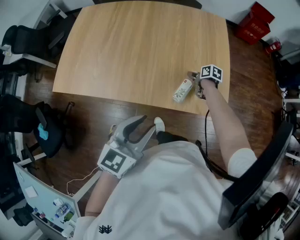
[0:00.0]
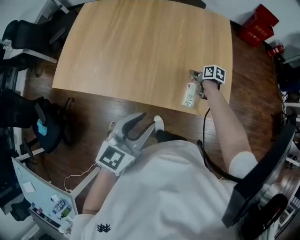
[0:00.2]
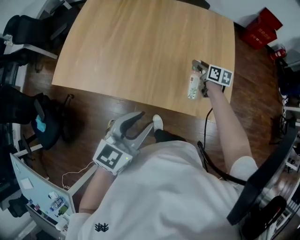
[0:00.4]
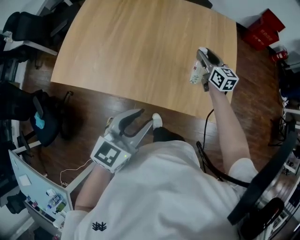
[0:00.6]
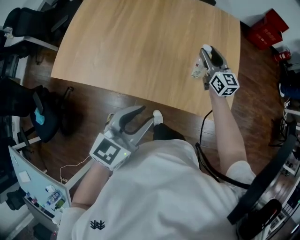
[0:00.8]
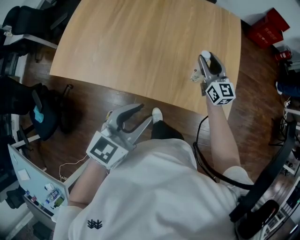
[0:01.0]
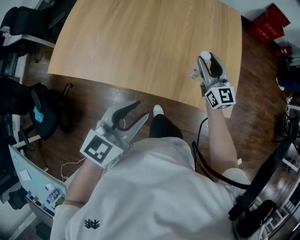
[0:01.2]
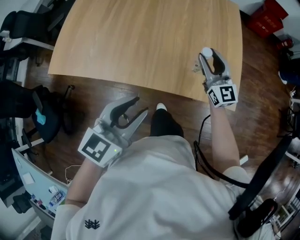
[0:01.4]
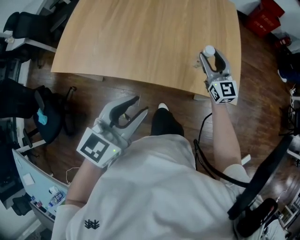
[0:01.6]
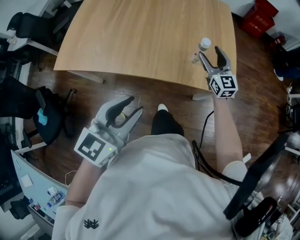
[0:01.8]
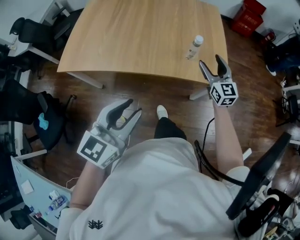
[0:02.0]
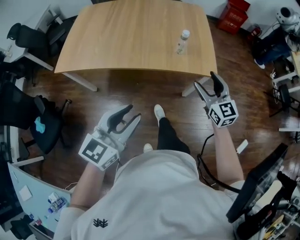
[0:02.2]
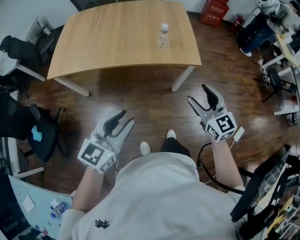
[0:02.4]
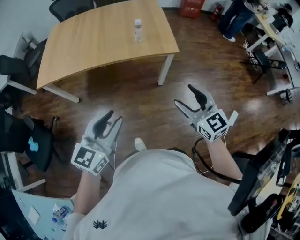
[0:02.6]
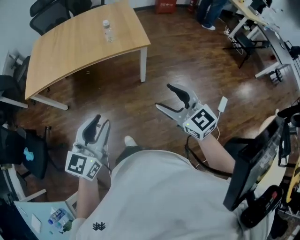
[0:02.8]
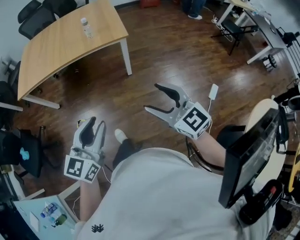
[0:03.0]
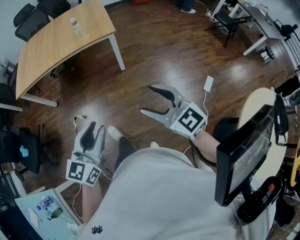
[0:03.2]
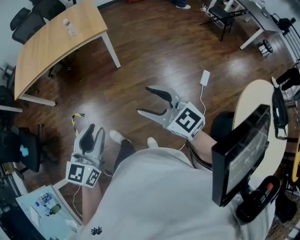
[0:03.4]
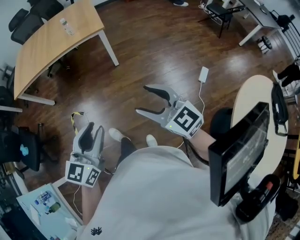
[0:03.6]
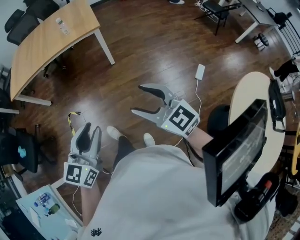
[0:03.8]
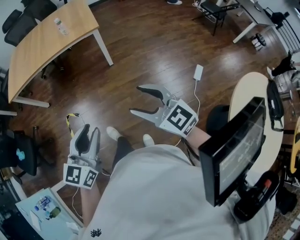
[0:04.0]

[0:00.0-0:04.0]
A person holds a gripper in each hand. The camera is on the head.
0:00.0 to 0:01.4: The right gripper travels upward by approximately 20 cm, and tilts its fingers some 50 degrees upward.
0:01.4 to 0:02.6: The left gripper shifts approximately 25 cm backward; the right gripper goes approximately 40 cm backward, and opens its fingers.
0:02.6 to 0:04.0: The right gripper heads backward, covering roughly 25 cm. The left gripper shifts some 30 cm backward and to the right.

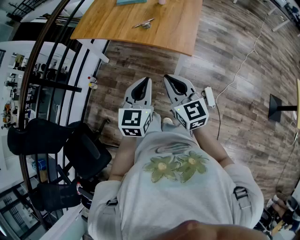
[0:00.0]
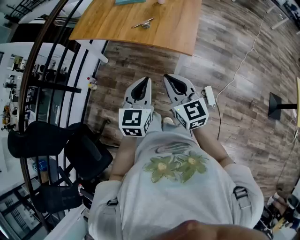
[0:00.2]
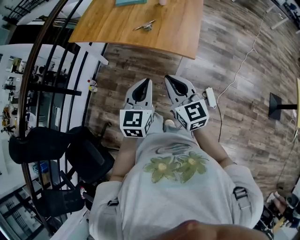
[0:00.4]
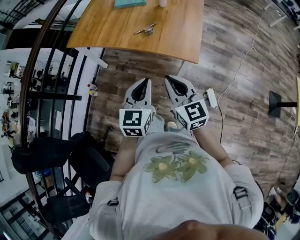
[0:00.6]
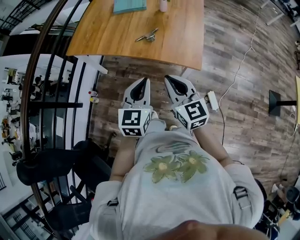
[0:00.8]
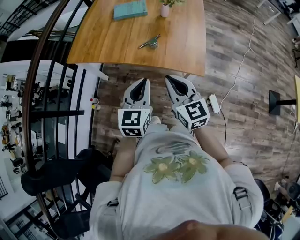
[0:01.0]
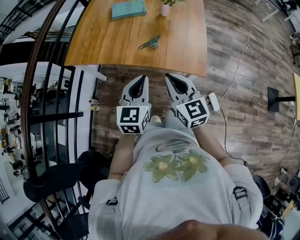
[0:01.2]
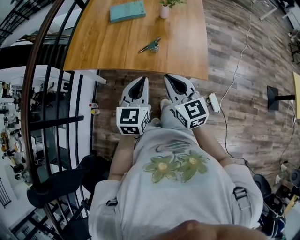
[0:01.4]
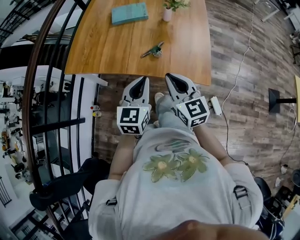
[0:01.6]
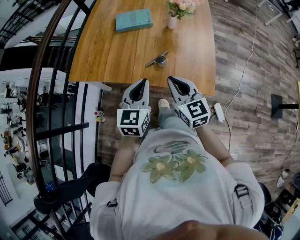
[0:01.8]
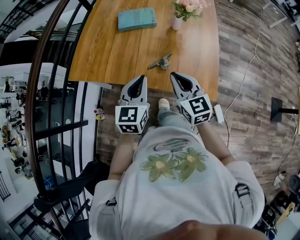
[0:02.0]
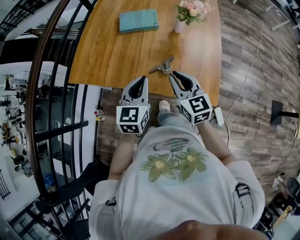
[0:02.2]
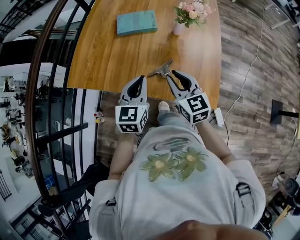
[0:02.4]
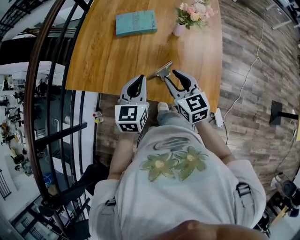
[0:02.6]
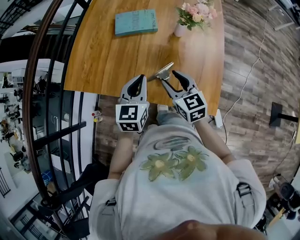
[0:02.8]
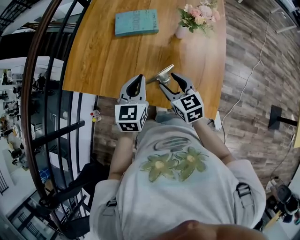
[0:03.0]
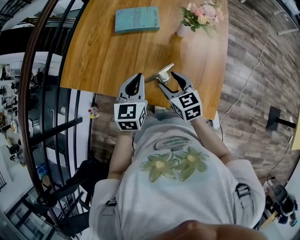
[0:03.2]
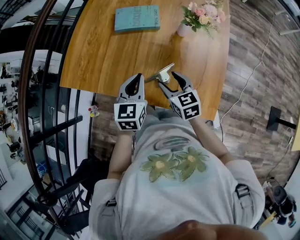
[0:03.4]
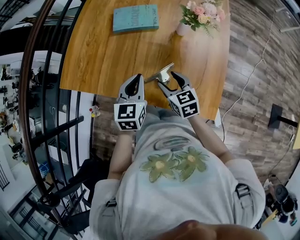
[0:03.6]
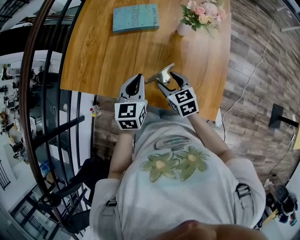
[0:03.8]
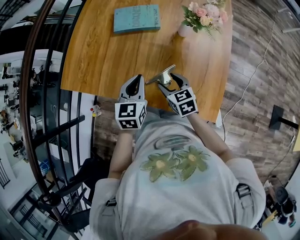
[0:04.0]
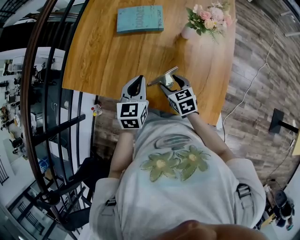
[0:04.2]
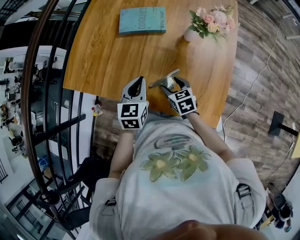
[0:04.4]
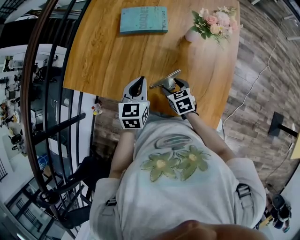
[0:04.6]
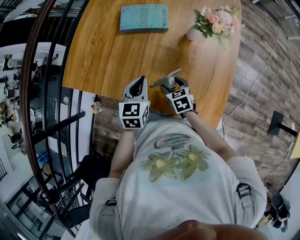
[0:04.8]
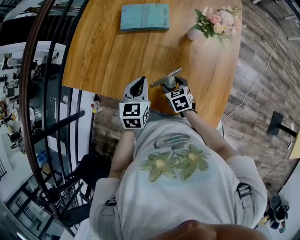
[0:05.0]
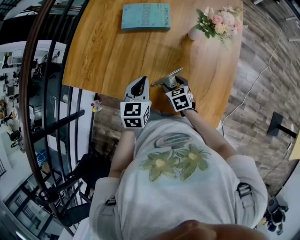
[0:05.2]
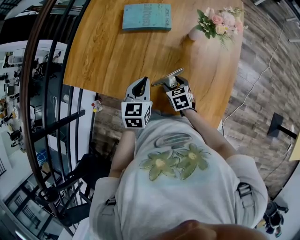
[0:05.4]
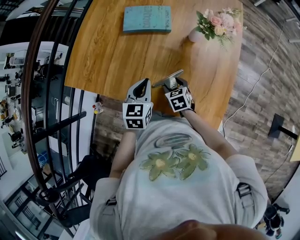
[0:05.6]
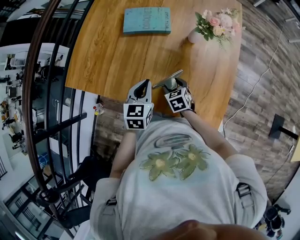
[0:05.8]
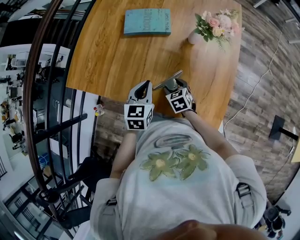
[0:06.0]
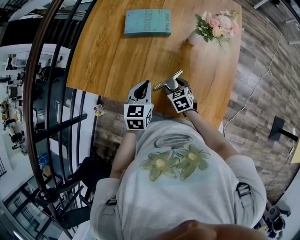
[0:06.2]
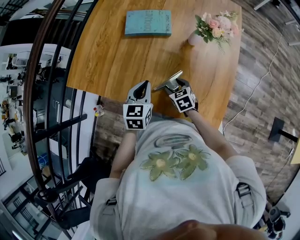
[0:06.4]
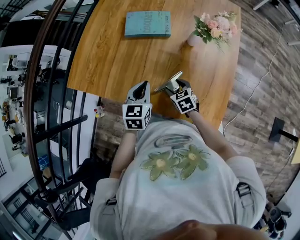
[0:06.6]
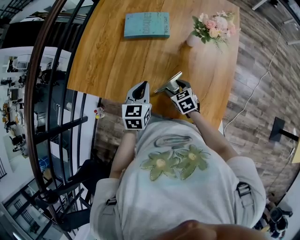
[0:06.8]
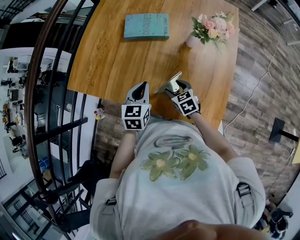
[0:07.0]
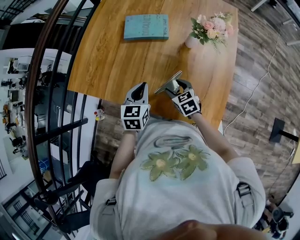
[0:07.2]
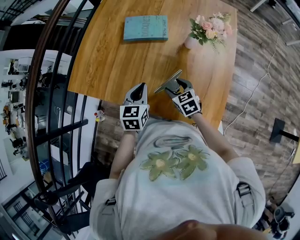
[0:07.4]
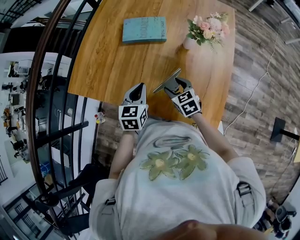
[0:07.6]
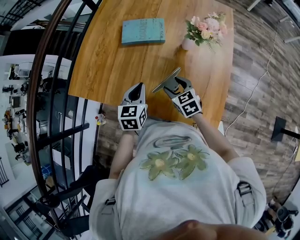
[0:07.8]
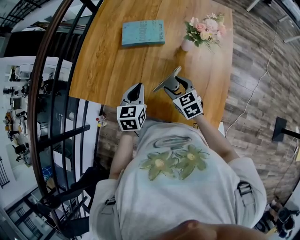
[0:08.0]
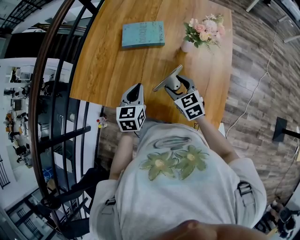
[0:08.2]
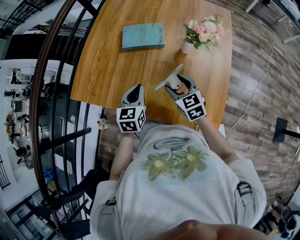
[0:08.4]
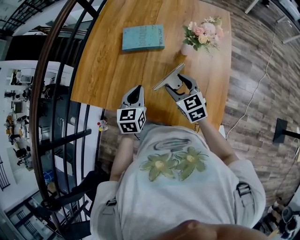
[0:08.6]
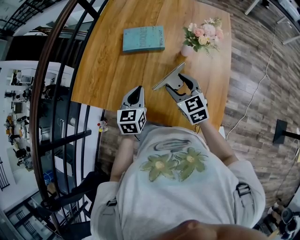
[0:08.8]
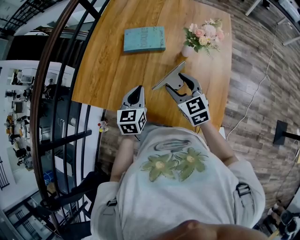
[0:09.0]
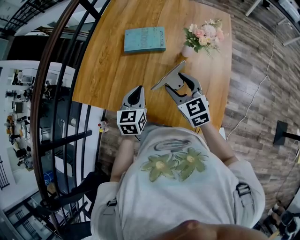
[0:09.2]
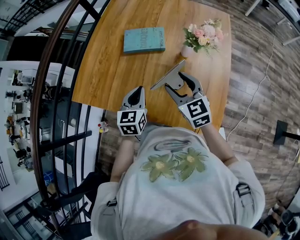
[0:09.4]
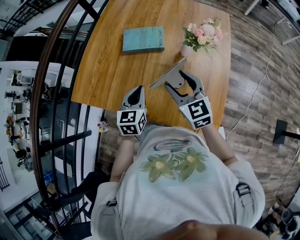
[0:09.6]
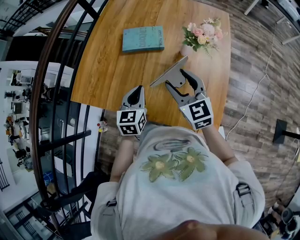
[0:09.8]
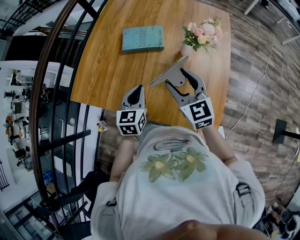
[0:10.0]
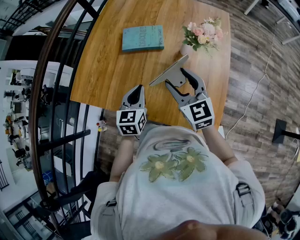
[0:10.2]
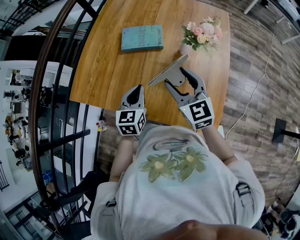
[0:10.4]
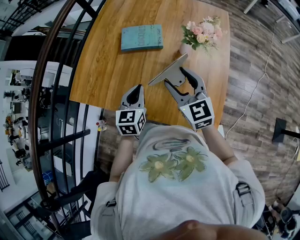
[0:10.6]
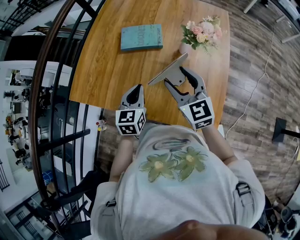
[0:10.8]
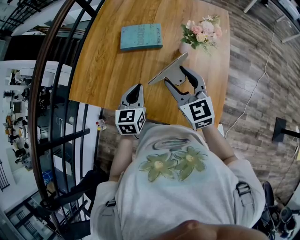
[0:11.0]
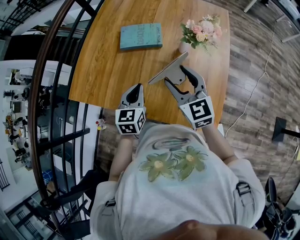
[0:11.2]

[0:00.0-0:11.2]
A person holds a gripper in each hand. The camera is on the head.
0:00.0 to 0:01.6: The two grippers go approximately 25 cm forward.
0:01.6 to 0:03.2: The left gripper goes about 20 cm forward. The right gripper heads forward and downward, covering some 20 cm, turns by roughly 20 degrees, and opens up.
0:03.2 to 0:04.8: The right gripper travels downward by approximately 15 cm, and changes its angle by roughly 20 degrees. Meanwhile the left gripper moves downward, roughly 5 cm.
0:04.8 to 0:06.4: The grippers make only small movements.
0:06.4 to 0:08.0: The right gripper goes roughly 10 cm upward.
0:08.0 to 0:09.6: The right gripper shifts about 15 cm upward, and swivels roughly 20 degrees.
0:09.6 to 0:11.2: The grippers stay close to where they were, moving slightly.

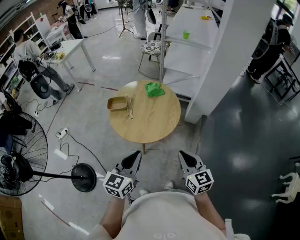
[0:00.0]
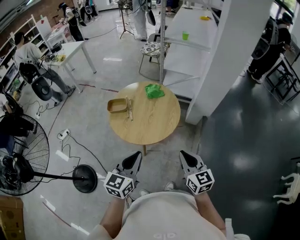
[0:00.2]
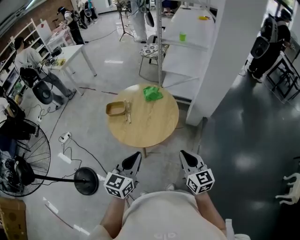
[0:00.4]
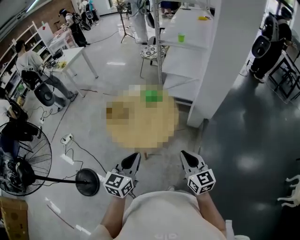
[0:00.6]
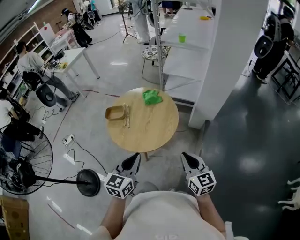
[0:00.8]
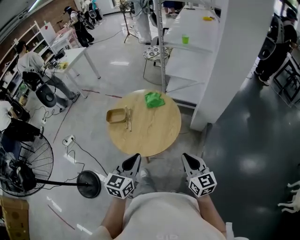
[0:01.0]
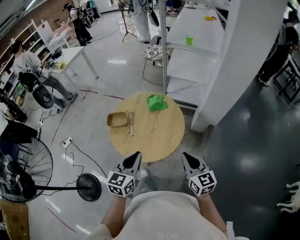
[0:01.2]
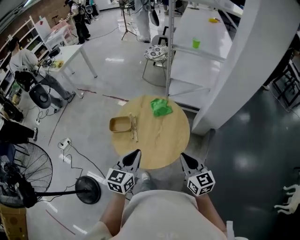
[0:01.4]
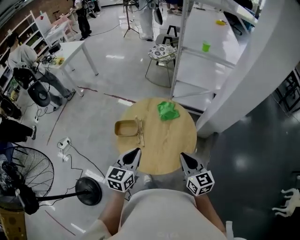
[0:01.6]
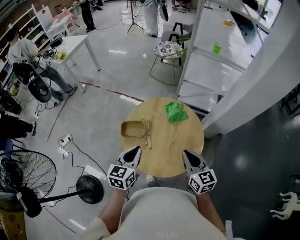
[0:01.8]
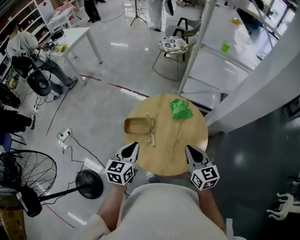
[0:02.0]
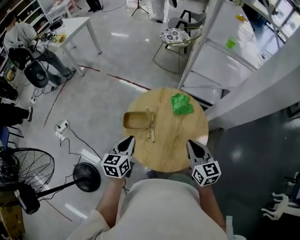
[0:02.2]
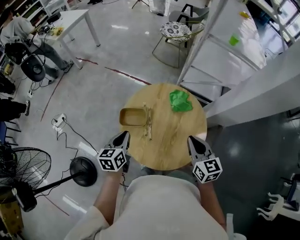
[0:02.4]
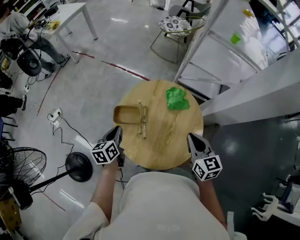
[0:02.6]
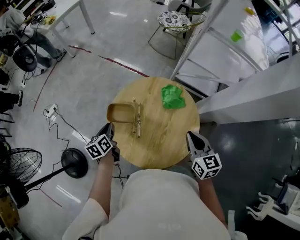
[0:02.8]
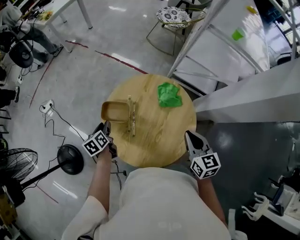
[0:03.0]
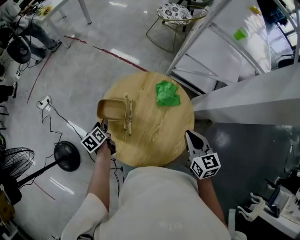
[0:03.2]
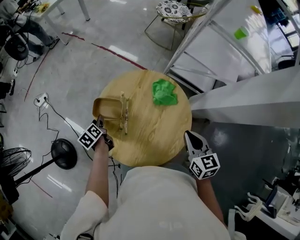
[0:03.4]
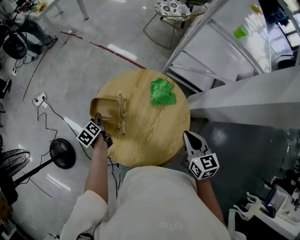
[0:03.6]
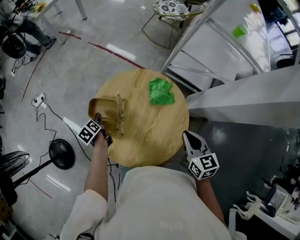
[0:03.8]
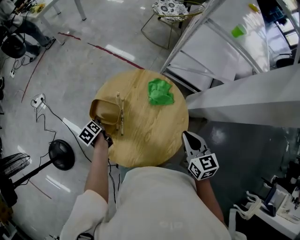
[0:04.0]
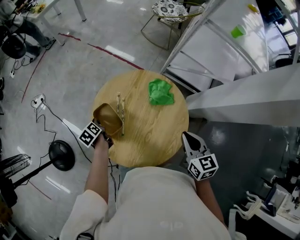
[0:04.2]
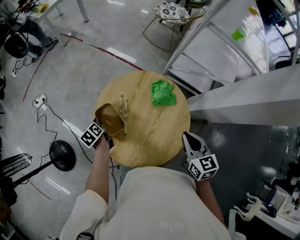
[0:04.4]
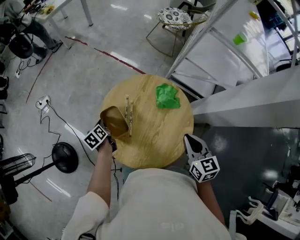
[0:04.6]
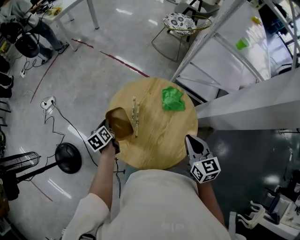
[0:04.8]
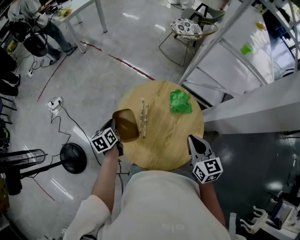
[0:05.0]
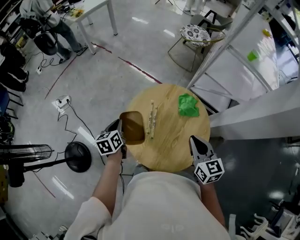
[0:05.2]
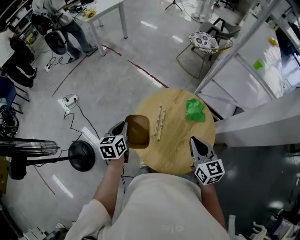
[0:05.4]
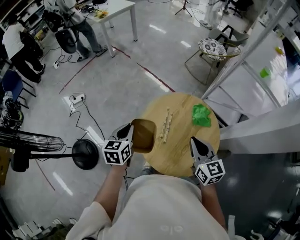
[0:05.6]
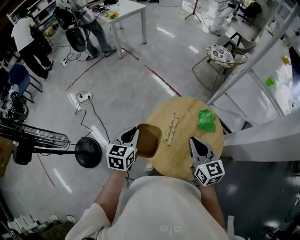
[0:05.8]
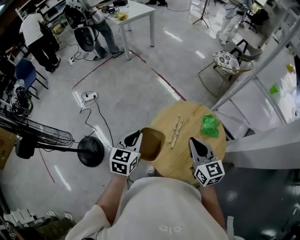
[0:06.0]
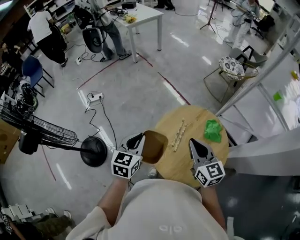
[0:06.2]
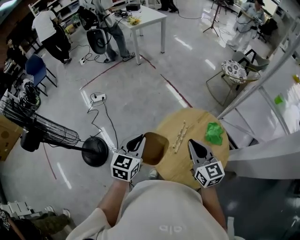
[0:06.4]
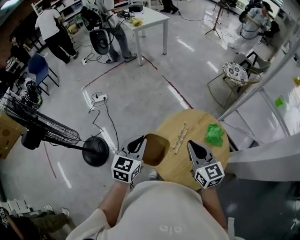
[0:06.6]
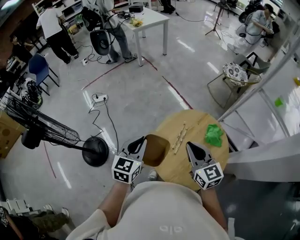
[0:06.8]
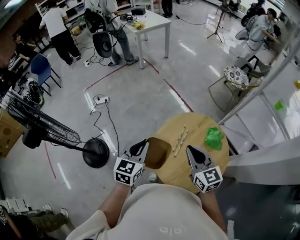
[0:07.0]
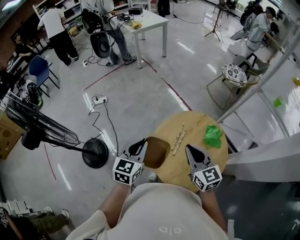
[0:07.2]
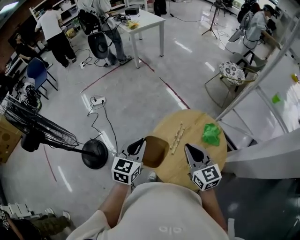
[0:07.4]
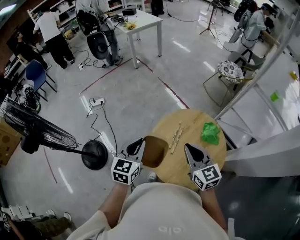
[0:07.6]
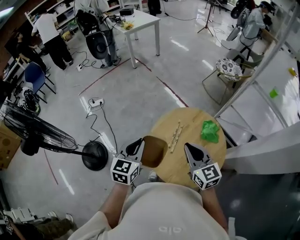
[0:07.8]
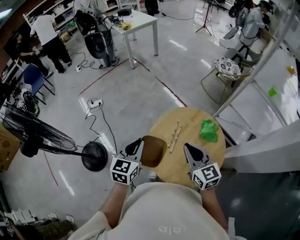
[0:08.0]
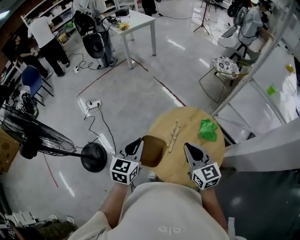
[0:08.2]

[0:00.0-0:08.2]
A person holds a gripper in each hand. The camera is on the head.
0:00.0 to 0:01.6: Both grippers move forward, some 25 cm.
0:01.6 to 0:03.2: The left gripper heads downward, forward and to the left, covering approximately 35 cm, rotates about 60 degrees, and opens up; the right gripper is displaced forward and downward by about 20 cm.
0:03.2 to 0:05.0: The left gripper is displaced upward by approximately 5 cm, and closes up, while the right gripper shifts some 5 cm to the left.
0:05.0 to 0:06.6: The left gripper goes about 25 cm upward and backward, and rotates some 40 degrees; the right gripper is displaced to the left by some 20 cm, and changes its angle by roughly 30 degrees.
0:06.6 to 0:08.2: There are only small adjustments of the grippers.
